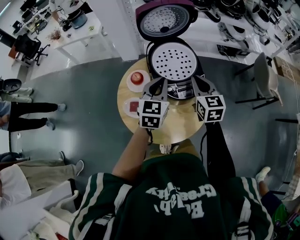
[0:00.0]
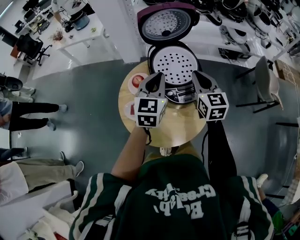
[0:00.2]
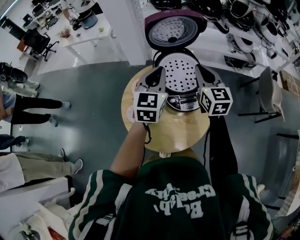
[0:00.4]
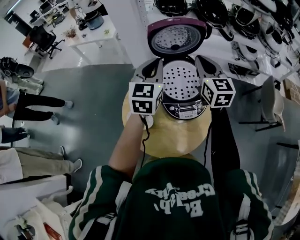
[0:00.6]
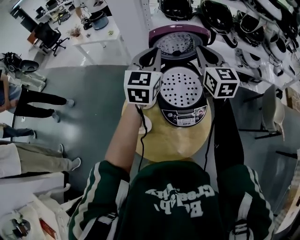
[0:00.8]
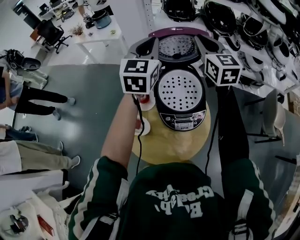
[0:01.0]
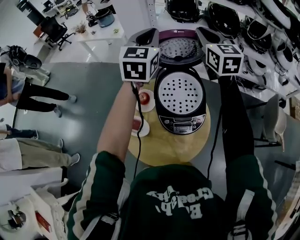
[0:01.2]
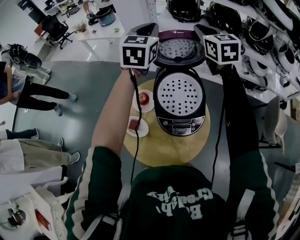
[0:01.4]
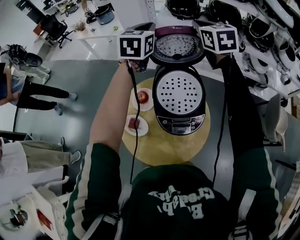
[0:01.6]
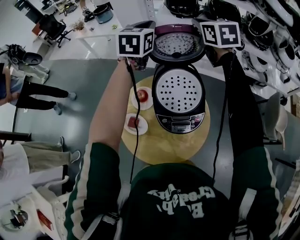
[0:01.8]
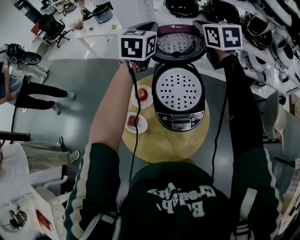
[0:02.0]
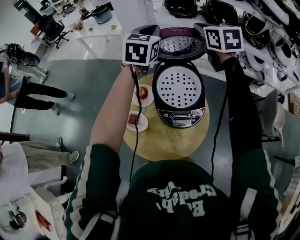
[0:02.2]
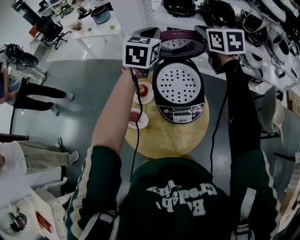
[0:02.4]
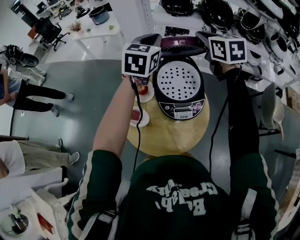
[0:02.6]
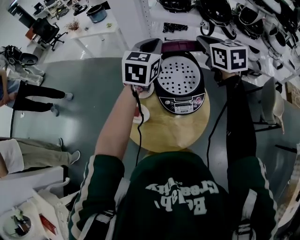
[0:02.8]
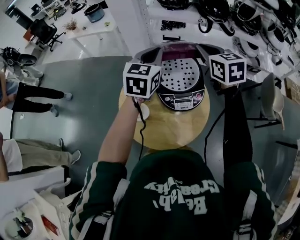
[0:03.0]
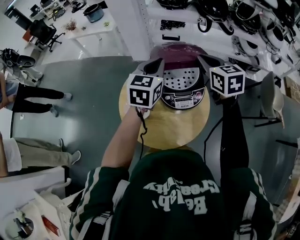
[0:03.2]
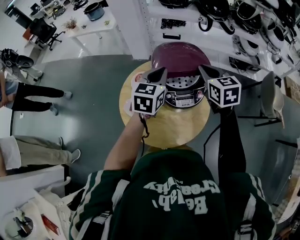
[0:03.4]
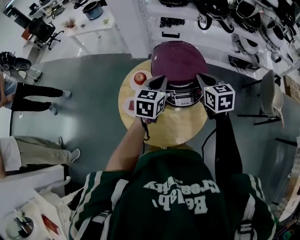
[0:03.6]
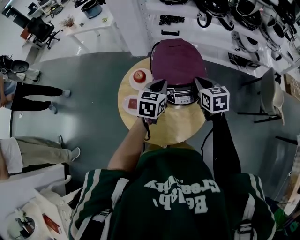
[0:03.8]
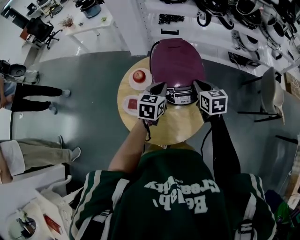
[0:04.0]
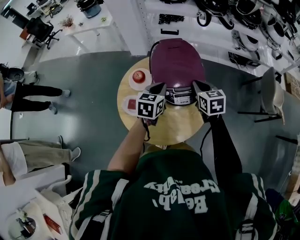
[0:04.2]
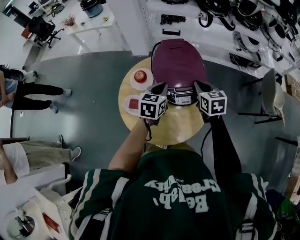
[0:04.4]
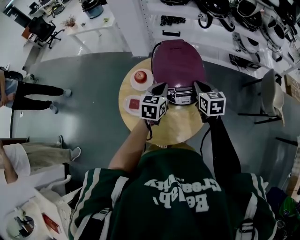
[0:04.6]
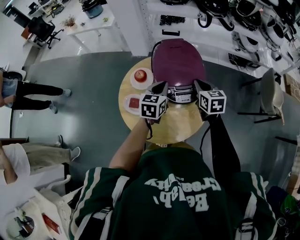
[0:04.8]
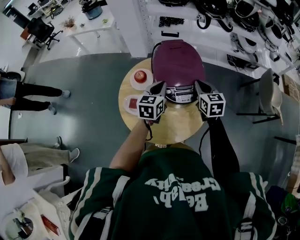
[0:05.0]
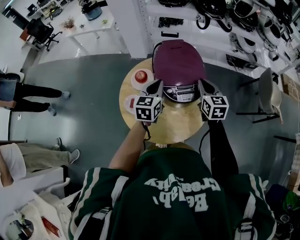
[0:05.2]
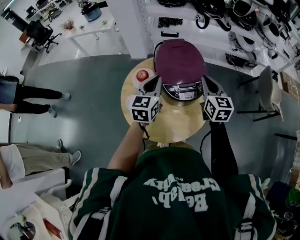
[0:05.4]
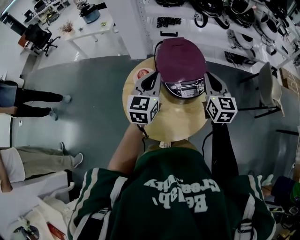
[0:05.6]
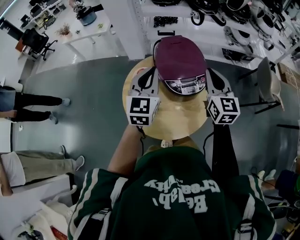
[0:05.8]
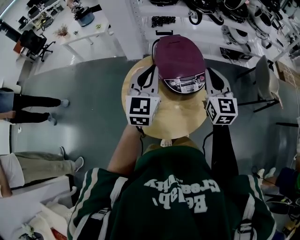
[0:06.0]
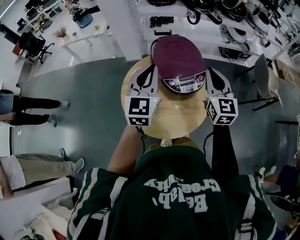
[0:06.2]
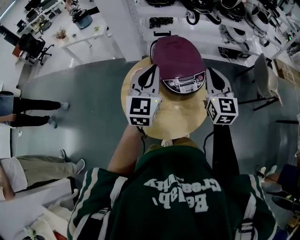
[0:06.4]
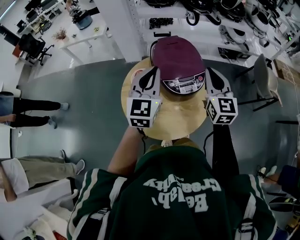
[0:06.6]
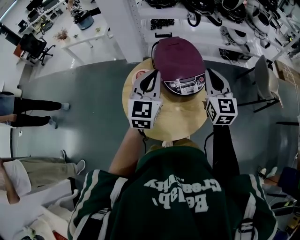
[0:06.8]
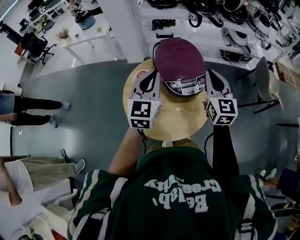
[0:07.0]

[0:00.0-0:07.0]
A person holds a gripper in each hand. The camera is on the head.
0:00.0 to 0:01.4: The grippers both shift forward and upward by roughly 35 cm.
0:01.4 to 0:02.8: The left gripper goes about 15 cm backward and downward; the right gripper travels backward by roughly 15 cm.
0:02.8 to 0:04.2: The grippers both shift downward and backward by approximately 25 cm. The left gripper changes its angle by some 20 degrees.
0:04.2 to 0:05.6: The right gripper heads upward, covering roughly 10 cm, and rotates about 30 degrees; the left gripper heads upward and to the left, covering some 15 cm, and swivels approximately 20 degrees.
0:05.6 to 0:07.0: The grippers make only small movements.

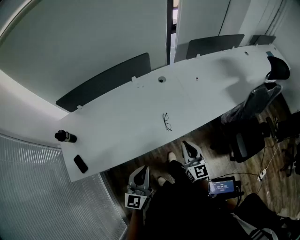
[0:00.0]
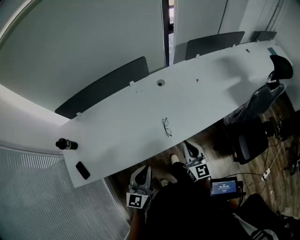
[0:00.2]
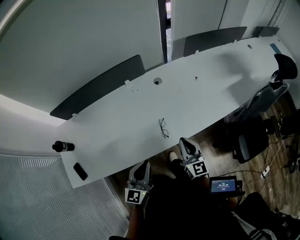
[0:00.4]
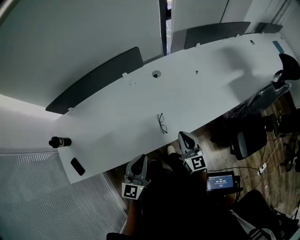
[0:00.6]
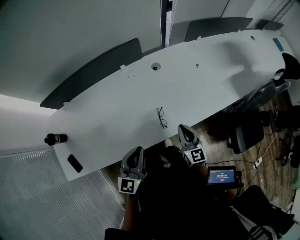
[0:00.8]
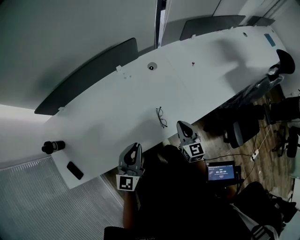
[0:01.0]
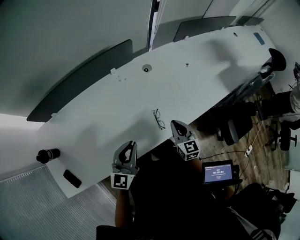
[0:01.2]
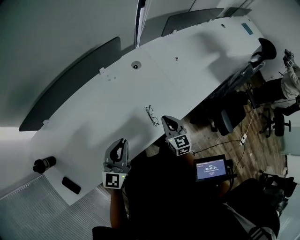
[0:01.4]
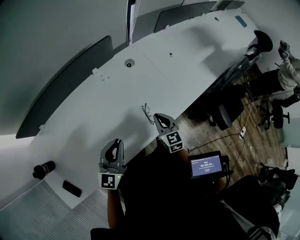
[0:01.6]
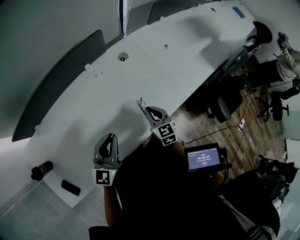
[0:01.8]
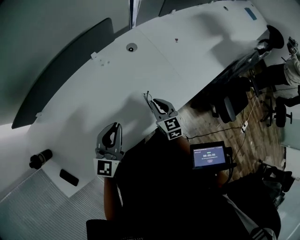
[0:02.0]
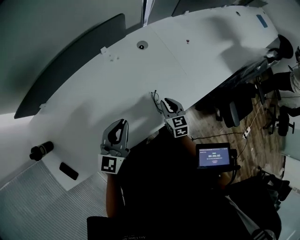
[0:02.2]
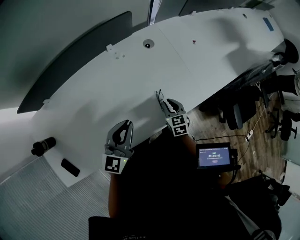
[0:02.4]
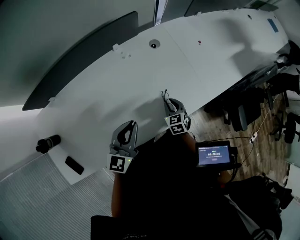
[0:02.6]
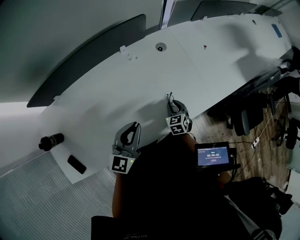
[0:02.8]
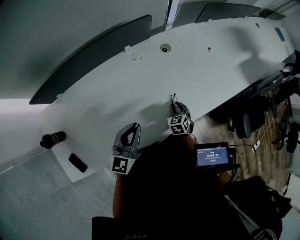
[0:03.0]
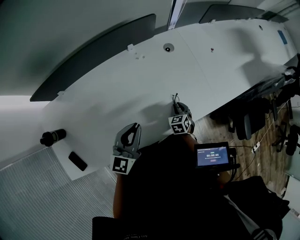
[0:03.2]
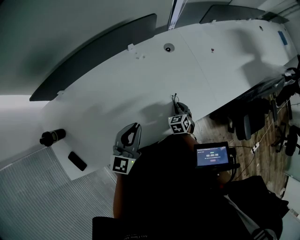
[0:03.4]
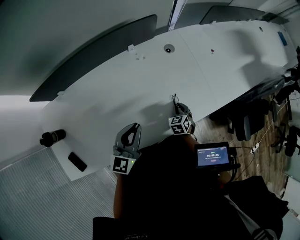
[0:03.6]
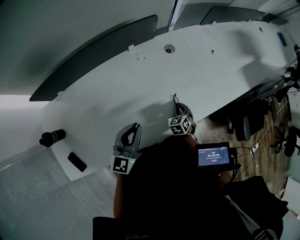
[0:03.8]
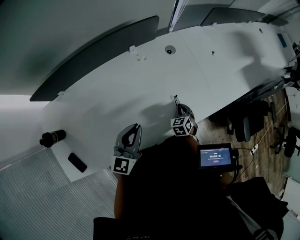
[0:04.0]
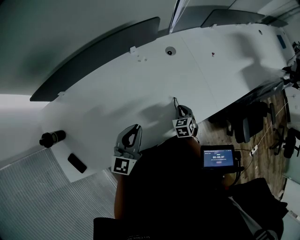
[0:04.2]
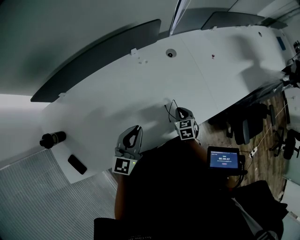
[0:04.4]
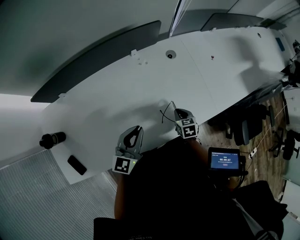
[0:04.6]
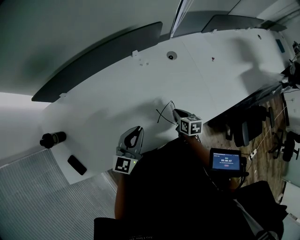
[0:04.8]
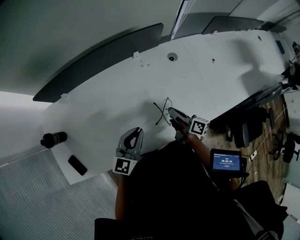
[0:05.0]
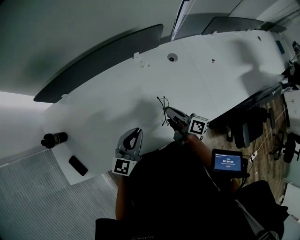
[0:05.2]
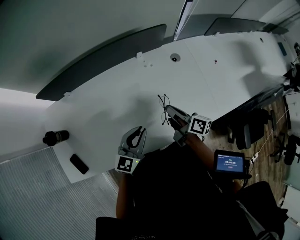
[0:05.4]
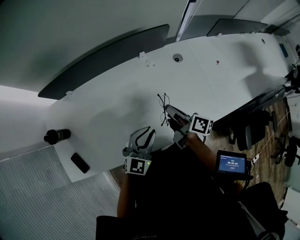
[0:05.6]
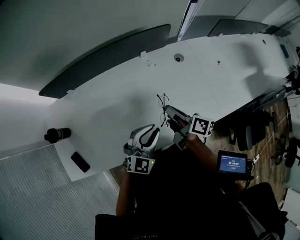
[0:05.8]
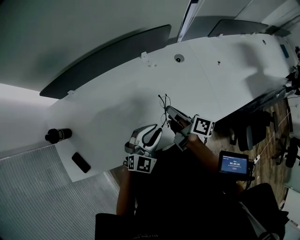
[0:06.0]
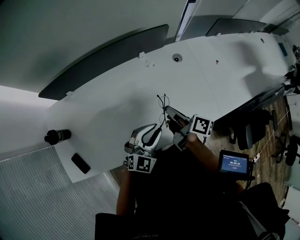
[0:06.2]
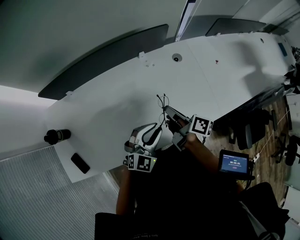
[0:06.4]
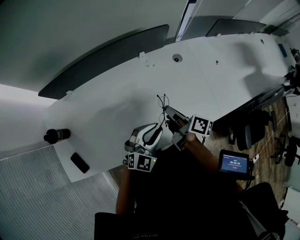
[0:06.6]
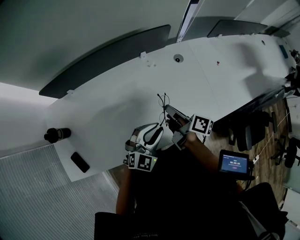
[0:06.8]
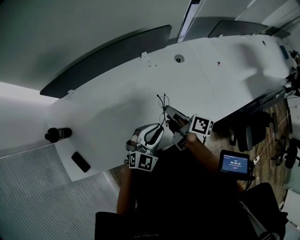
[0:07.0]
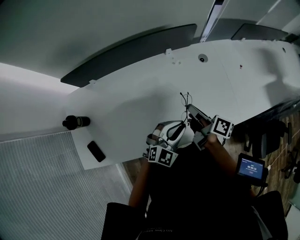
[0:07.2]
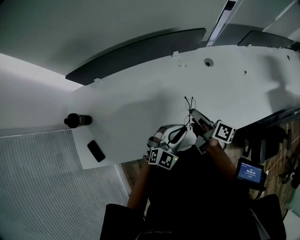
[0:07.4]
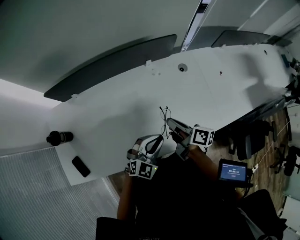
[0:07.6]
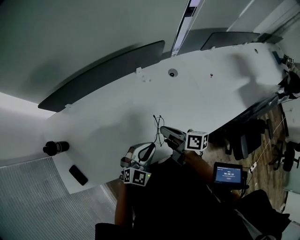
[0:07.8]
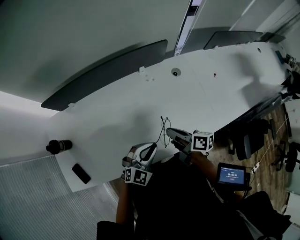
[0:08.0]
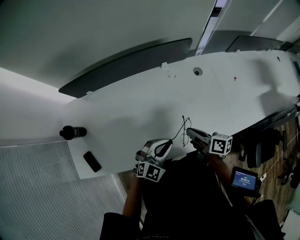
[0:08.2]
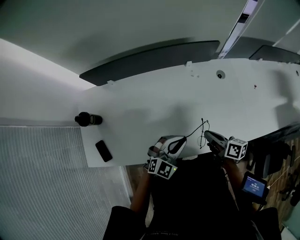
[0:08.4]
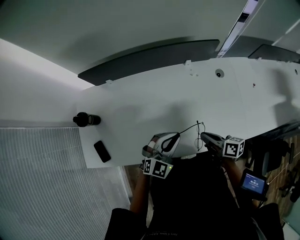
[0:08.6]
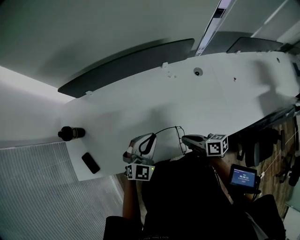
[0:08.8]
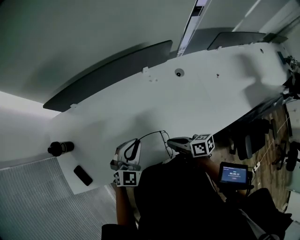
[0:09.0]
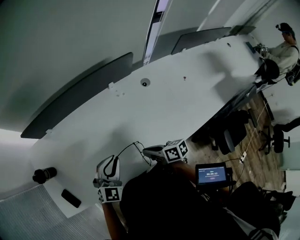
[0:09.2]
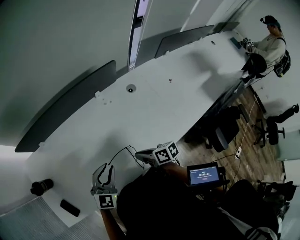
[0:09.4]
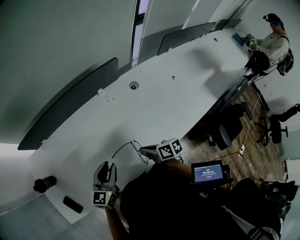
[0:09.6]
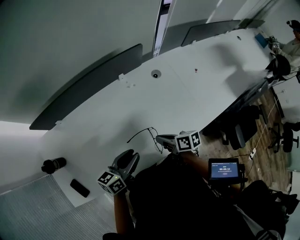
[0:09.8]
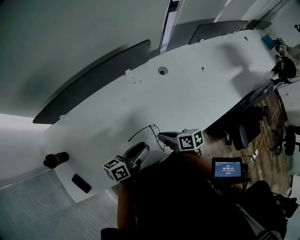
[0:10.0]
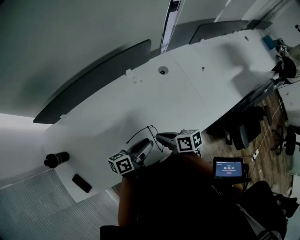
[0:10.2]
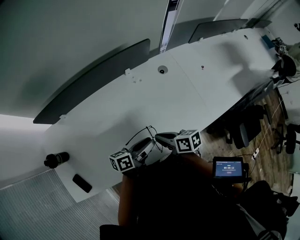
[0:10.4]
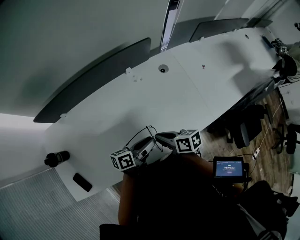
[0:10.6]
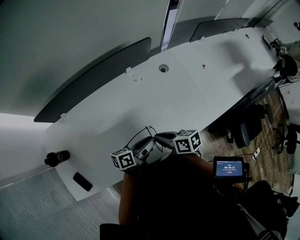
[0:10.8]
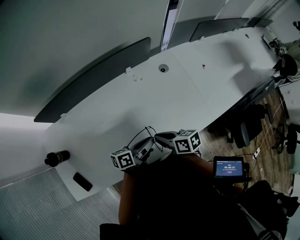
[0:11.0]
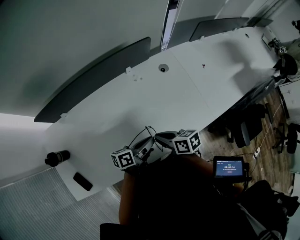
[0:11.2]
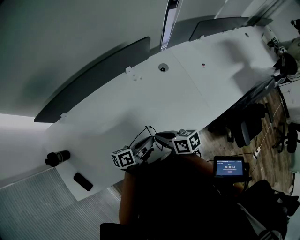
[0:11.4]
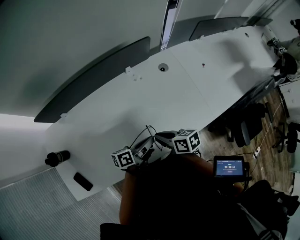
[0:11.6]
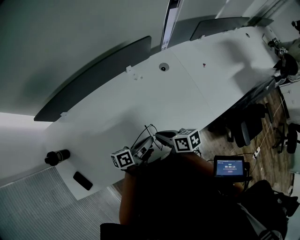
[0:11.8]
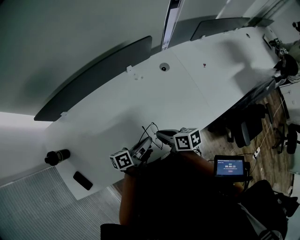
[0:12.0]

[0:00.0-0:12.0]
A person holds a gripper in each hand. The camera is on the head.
0:00.0 to 0:01.6: The left gripper moves forward, approximately 20 cm. The right gripper moves forward and downward, some 20 cm, and turns by roughly 20 degrees.
0:01.6 to 0:03.0: The right gripper heads downward, covering roughly 15 cm, rotates some 30 degrees, and opens.
0:03.0 to 0:04.4: The grippers stay close to where they were, moving slightly.
0:04.4 to 0:06.0: The left gripper is displaced to the right by about 5 cm, and turns by approximately 30 degrees; the right gripper moves upward and to the left, approximately 20 cm, and tilts its fingers roughly 40 degrees upward.
0:06.0 to 0:07.6: The grippers stay close to where they were, moving slightly.
0:07.6 to 0:09.0: The left gripper is displaced to the left by approximately 10 cm, while the right gripper goes about 5 cm backward, and turns by approximately 30 degrees.
0:09.0 to 0:10.4: The left gripper moves to the right, about 10 cm, rotates around the line of its fingers by roughly 80 degrees, counterclockwise from behind, and opens up.
0:10.4 to 0:12.0: The left gripper closes up.

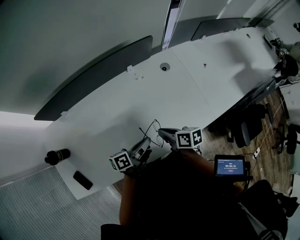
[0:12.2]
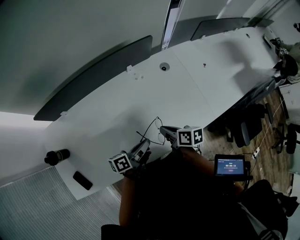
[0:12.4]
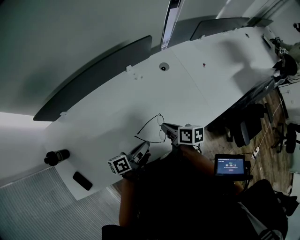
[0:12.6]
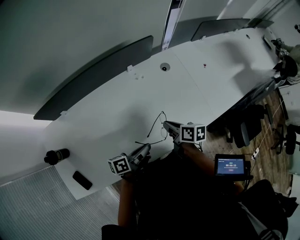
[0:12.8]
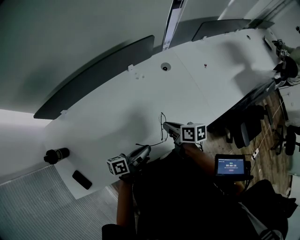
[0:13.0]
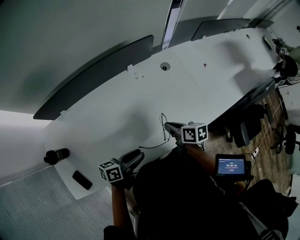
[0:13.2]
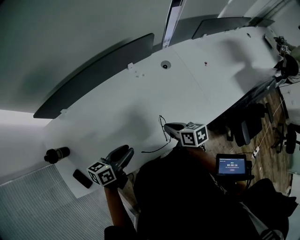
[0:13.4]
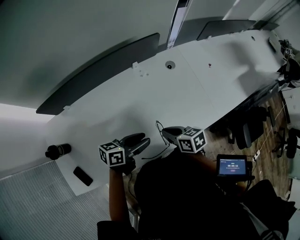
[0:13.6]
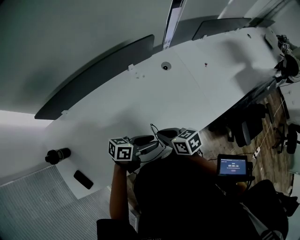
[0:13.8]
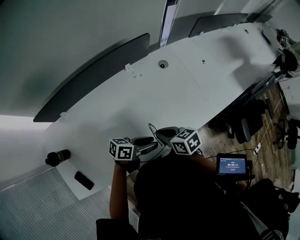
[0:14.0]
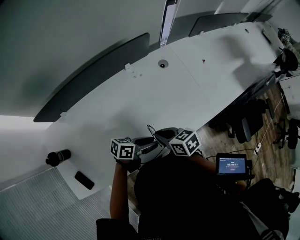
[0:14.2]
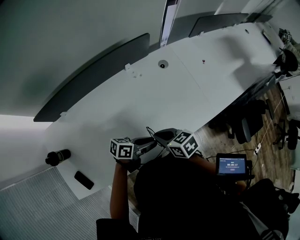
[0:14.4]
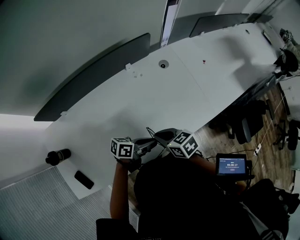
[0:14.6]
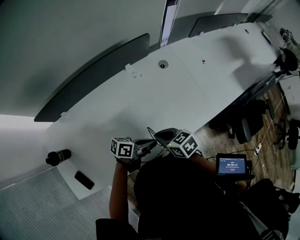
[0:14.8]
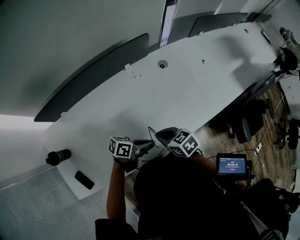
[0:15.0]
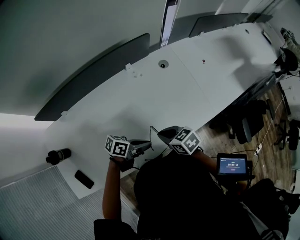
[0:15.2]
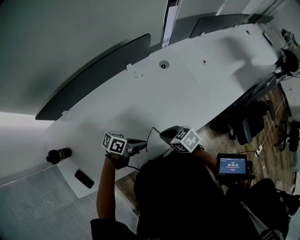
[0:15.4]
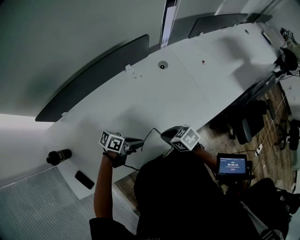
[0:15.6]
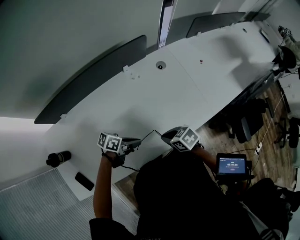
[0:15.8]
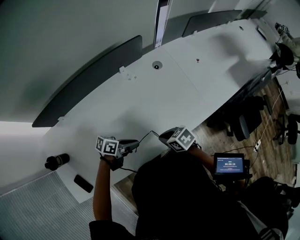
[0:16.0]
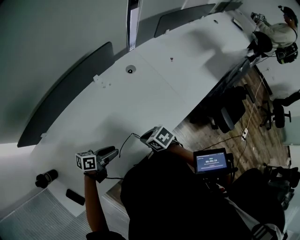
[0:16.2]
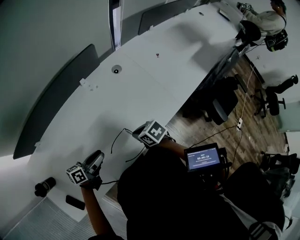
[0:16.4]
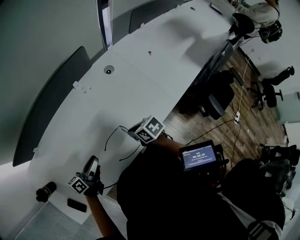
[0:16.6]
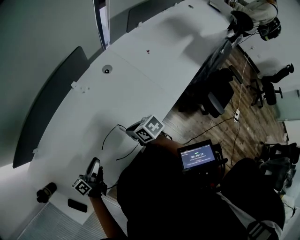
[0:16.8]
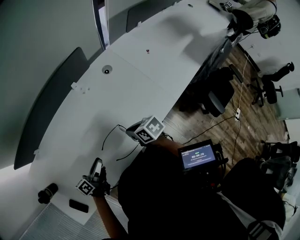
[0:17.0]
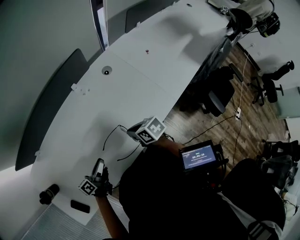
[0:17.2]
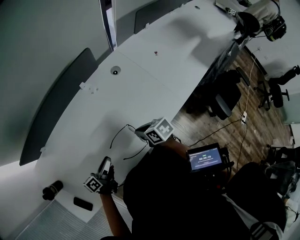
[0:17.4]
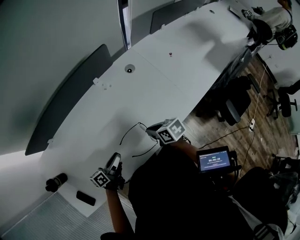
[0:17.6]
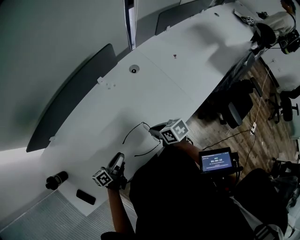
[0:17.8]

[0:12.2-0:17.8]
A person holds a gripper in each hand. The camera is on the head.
0:12.2 to 0:13.6: The left gripper goes to the left and returns, roughly 10 cm each way, changes its angle by roughly 30 degrees, and opens.
0:13.6 to 0:15.0: The left gripper ends up approximately 10 cm from where it was, swivels about 20 degrees, and closes up.
0:15.0 to 0:16.4: The left gripper shifts by roughly 10 cm, and opens its fingers. The right gripper moves roughly 10 cm.
